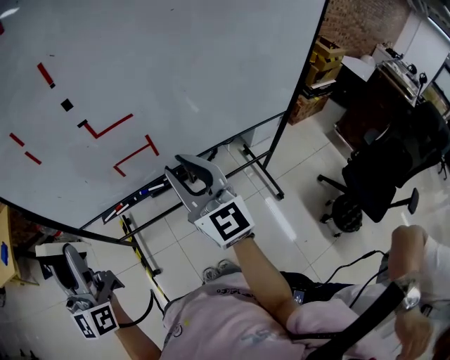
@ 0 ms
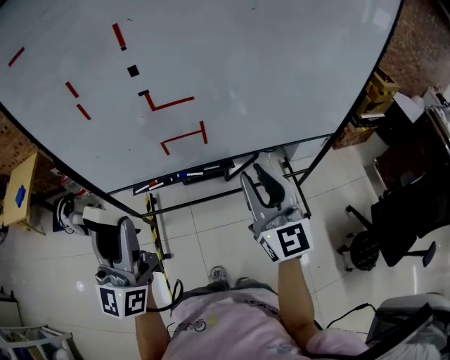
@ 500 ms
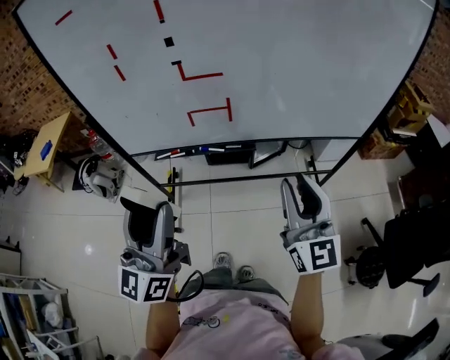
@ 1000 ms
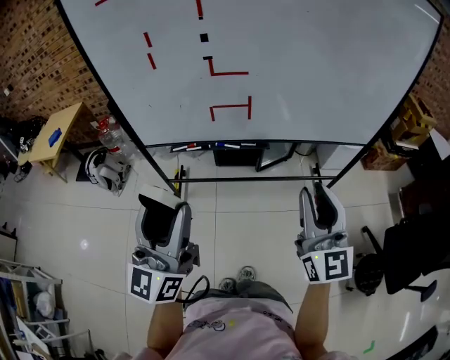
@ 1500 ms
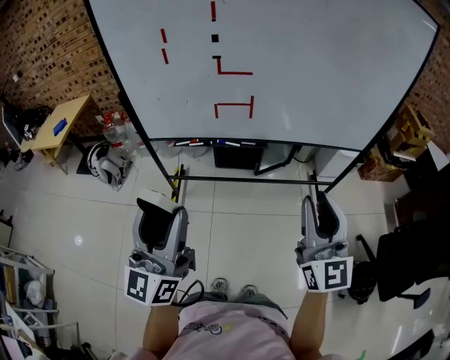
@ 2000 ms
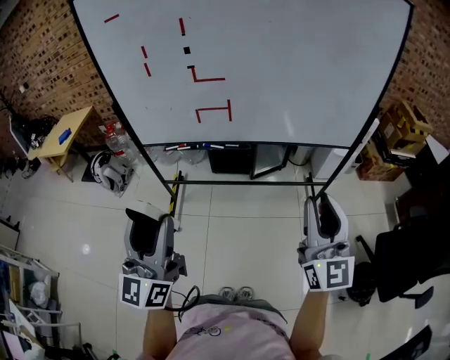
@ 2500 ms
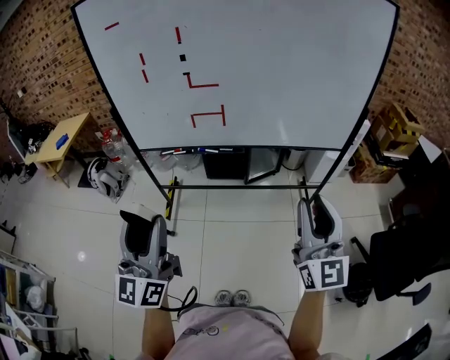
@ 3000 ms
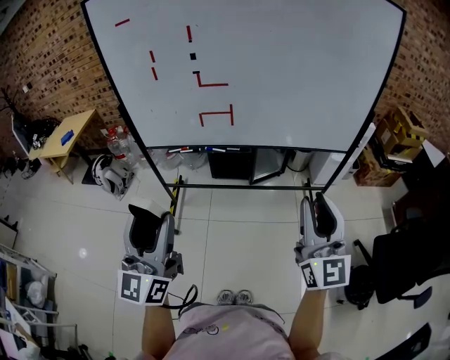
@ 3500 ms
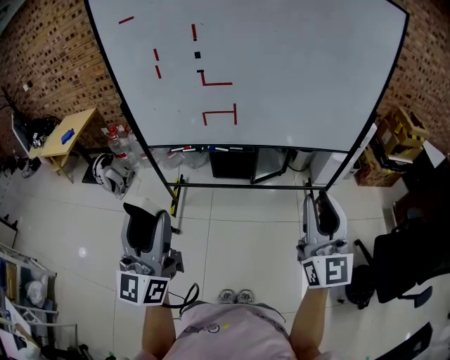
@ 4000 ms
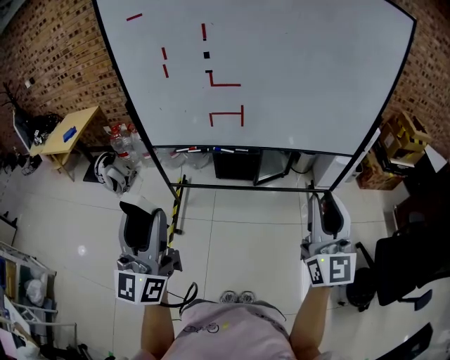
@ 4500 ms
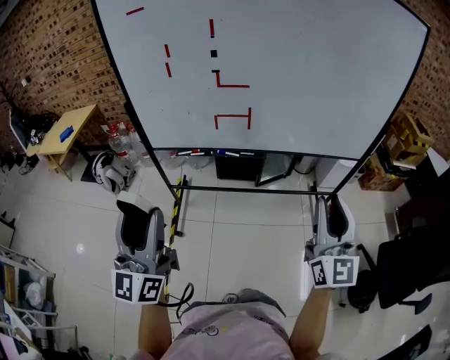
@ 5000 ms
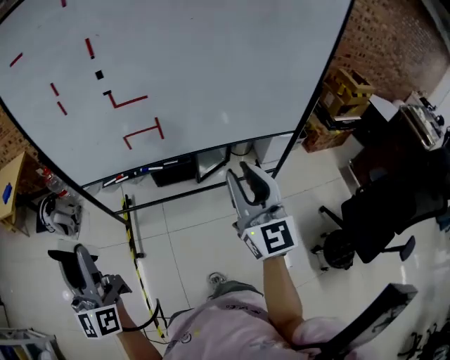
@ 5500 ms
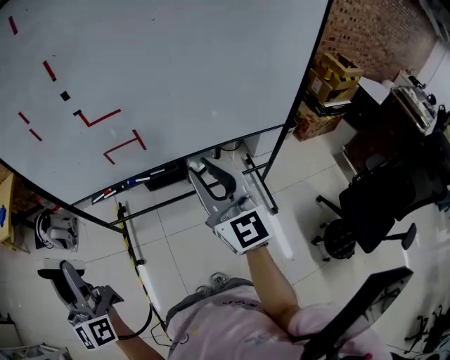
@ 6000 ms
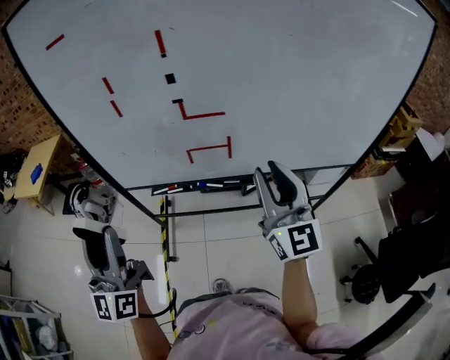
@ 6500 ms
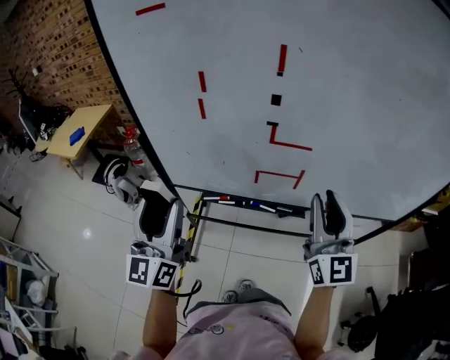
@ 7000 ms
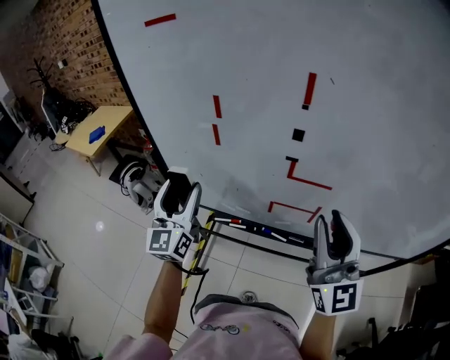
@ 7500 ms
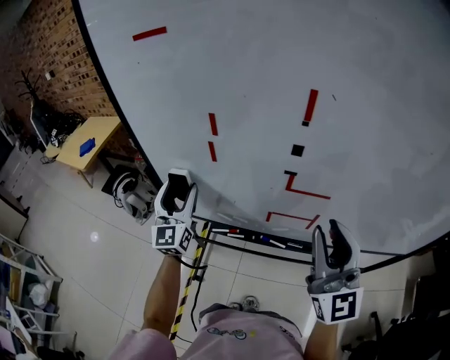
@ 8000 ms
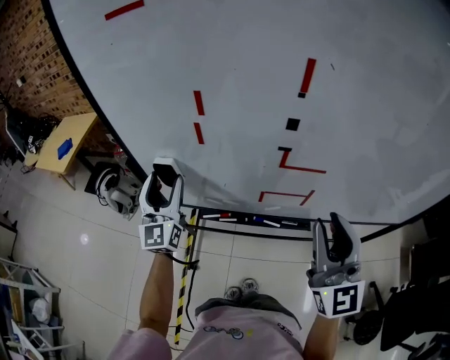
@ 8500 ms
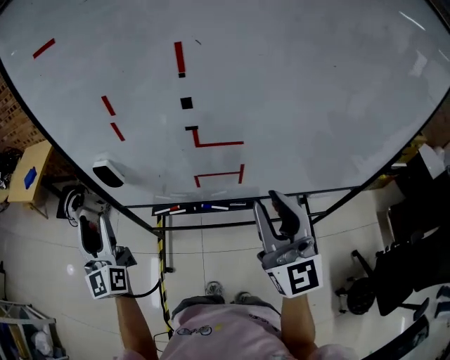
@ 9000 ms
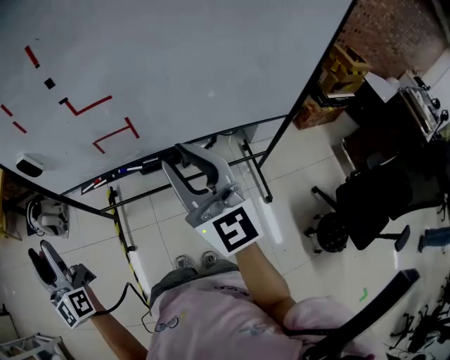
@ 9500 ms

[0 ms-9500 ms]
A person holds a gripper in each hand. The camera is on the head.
0 ms to 2000 ms: The two grippers go some 25 cm backward.
2000 ms to 4000 ms: The right gripper travels to the right and backward by approximately 10 cm. The left gripper shifts some 10 cm backward.
4000 ms to 5500 ms: The left gripper shifts roughly 15 cm forward and to the left. The right gripper shifts about 15 cm forward.
5500 ms to 7500 ms: The right gripper moves forward and to the left, approximately 30 cm. Meanwhile the left gripper shifts some 35 cm forward.
7500 ms to 9500 ms: The left gripper is displaced backward by roughly 25 cm. The right gripper heads backward and to the right, covering roughly 20 cm.

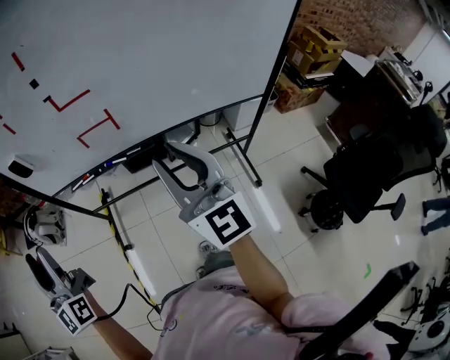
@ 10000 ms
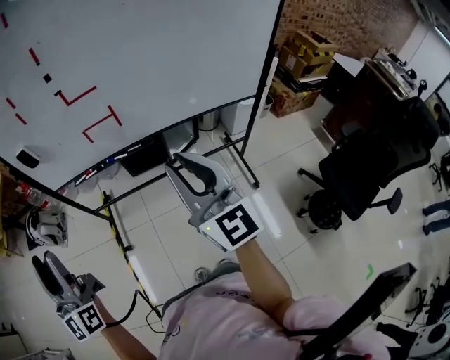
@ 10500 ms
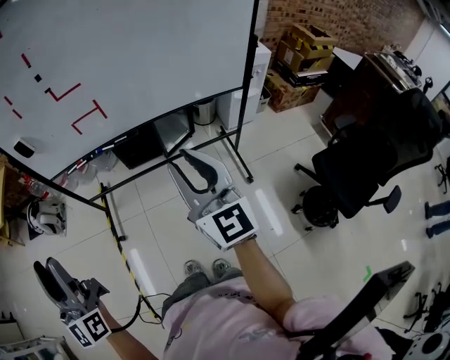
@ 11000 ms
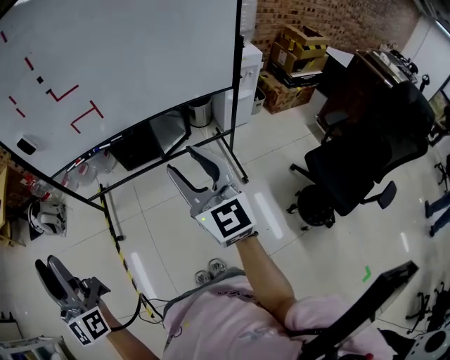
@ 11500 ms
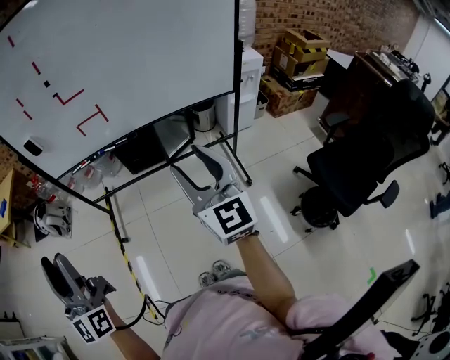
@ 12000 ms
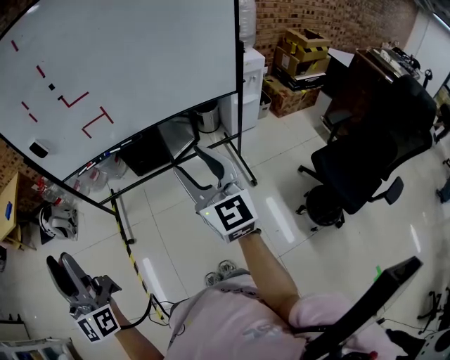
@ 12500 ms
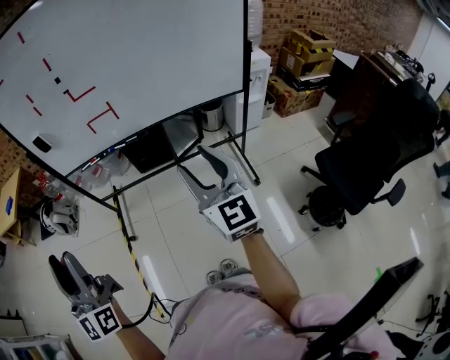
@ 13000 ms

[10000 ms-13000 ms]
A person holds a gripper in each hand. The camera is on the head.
10000 ms to 11500 ms: The left gripper moves backward, roughly 25 cm. Meanwhile the right gripper moves backward and to the right, some 25 cm, and opens up.
11500 ms to 13000 ms: The grippers make only small movements.

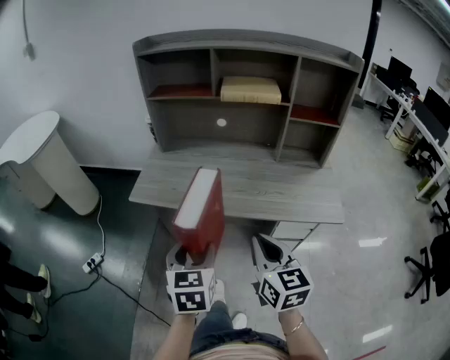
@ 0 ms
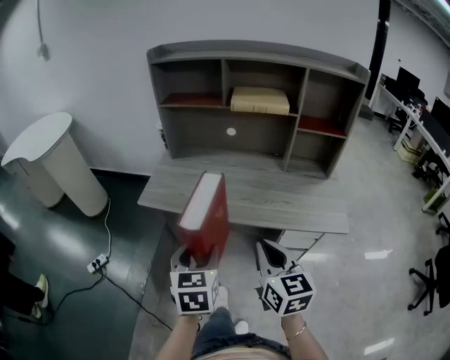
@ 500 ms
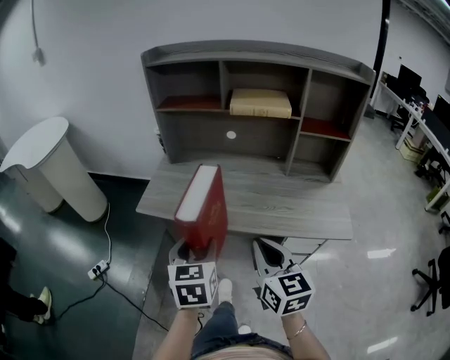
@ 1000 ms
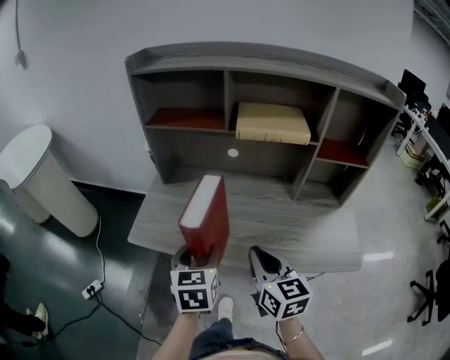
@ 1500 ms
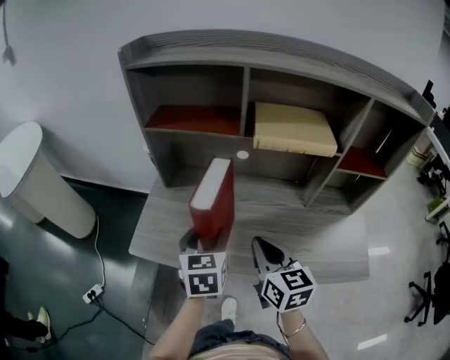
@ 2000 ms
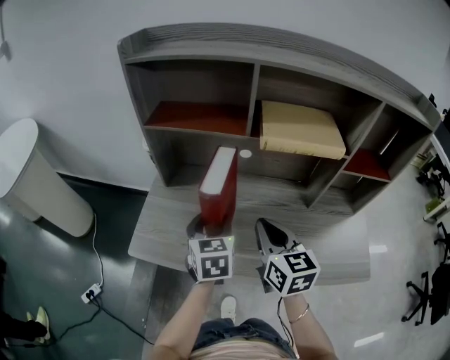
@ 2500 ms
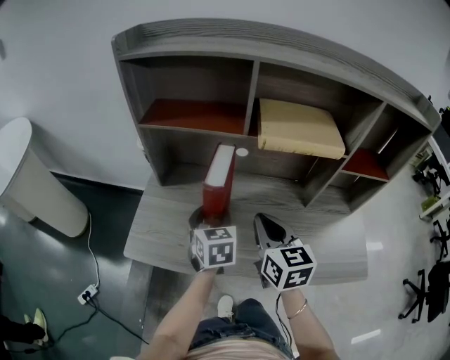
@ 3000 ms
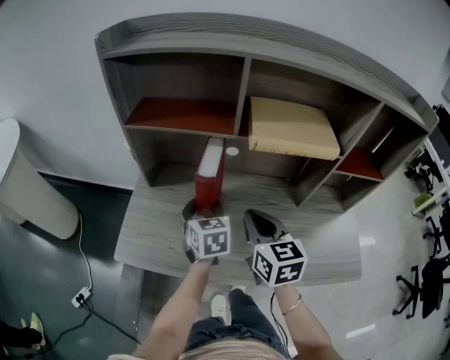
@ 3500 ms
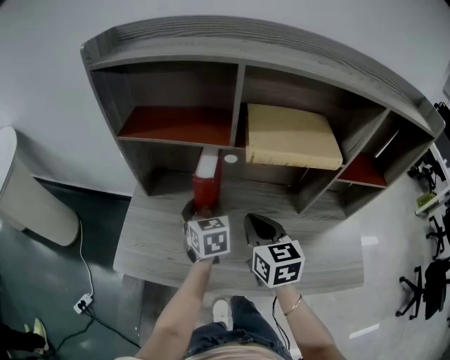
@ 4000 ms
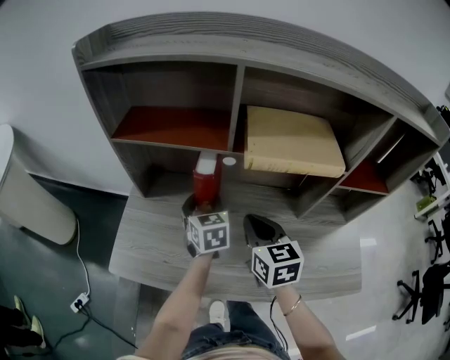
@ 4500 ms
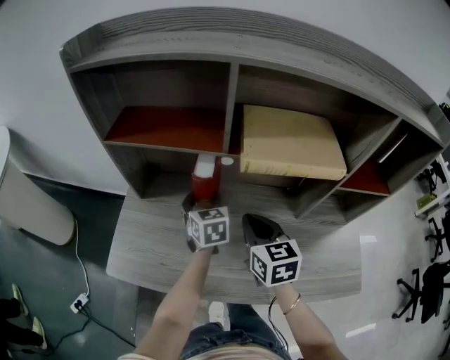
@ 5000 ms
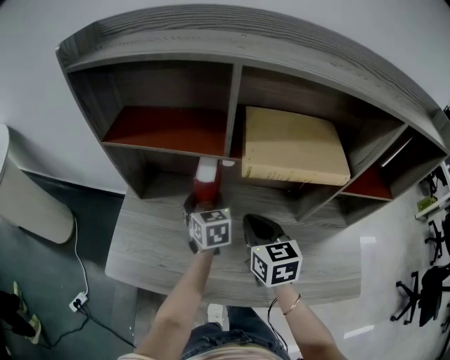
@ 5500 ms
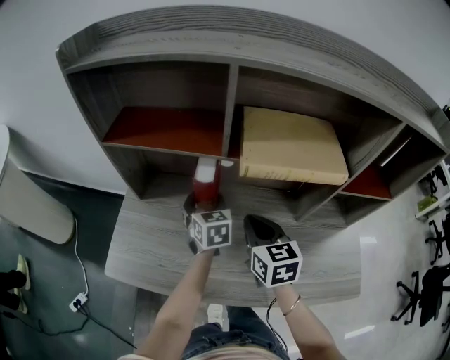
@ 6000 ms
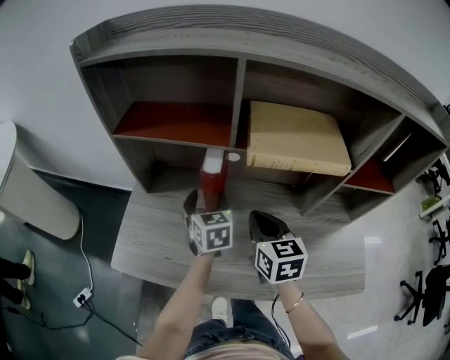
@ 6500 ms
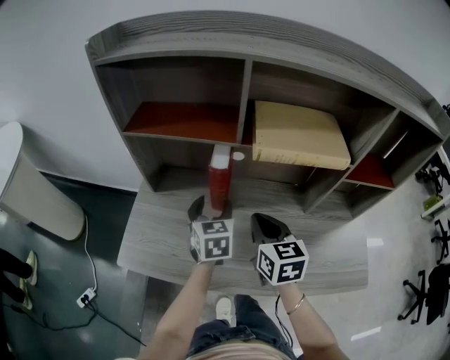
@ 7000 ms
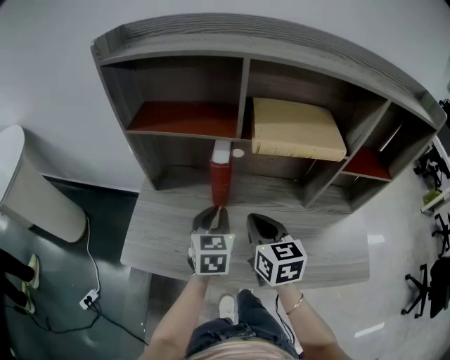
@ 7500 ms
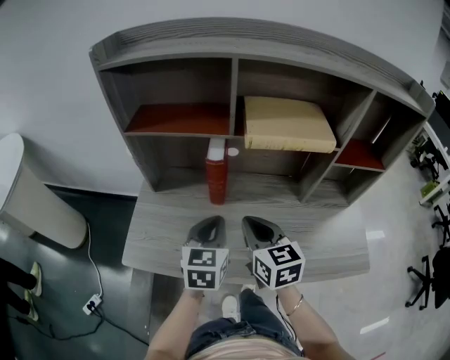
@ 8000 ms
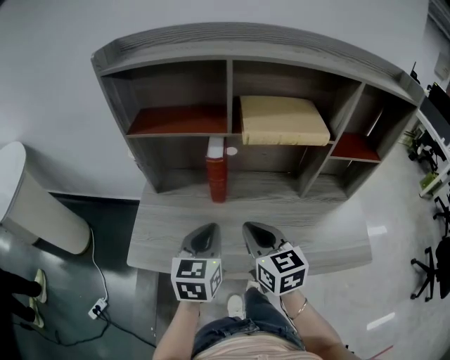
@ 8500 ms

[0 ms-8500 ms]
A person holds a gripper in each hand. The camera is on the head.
0 ms to 2000 ms: Both grippers travel together forward, approximately 30 cm.
2000 ms to 4000 ms: The two grippers go some 15 cm forward.
6500 ms to 8500 ms: The left gripper heads backward and upward, covering about 20 cm, turns by about 20 degrees, and closes its fingers, while the right gripper shifts roughly 10 cm backward and to the left.

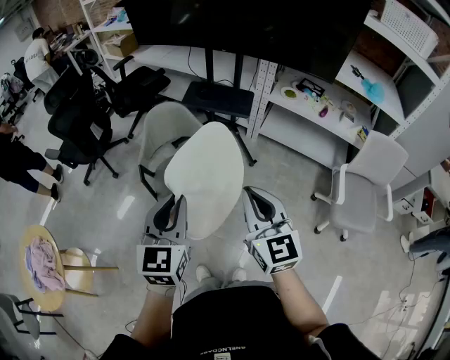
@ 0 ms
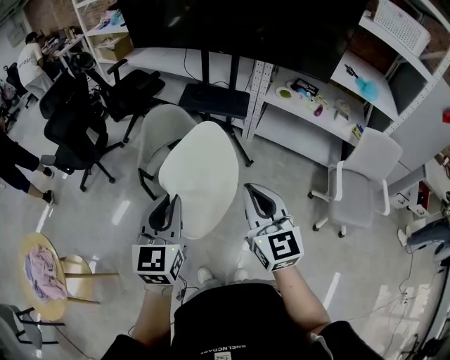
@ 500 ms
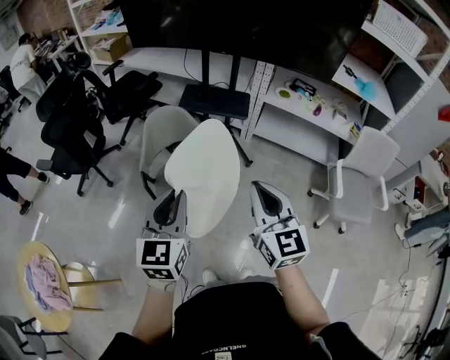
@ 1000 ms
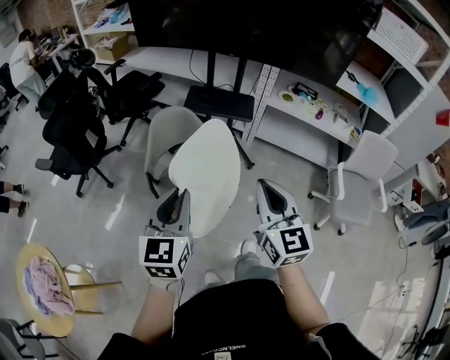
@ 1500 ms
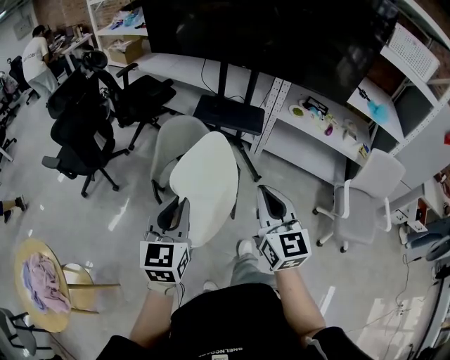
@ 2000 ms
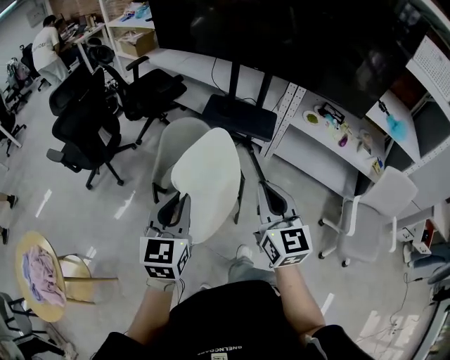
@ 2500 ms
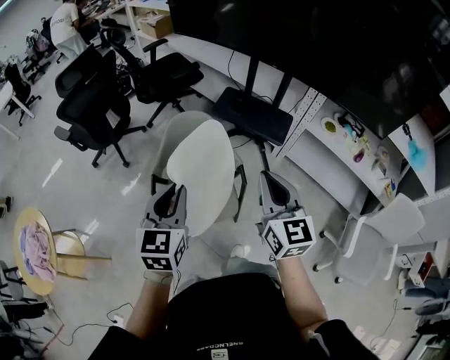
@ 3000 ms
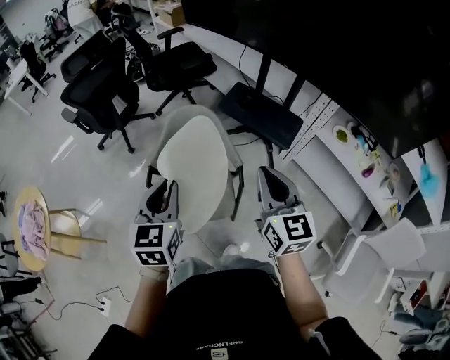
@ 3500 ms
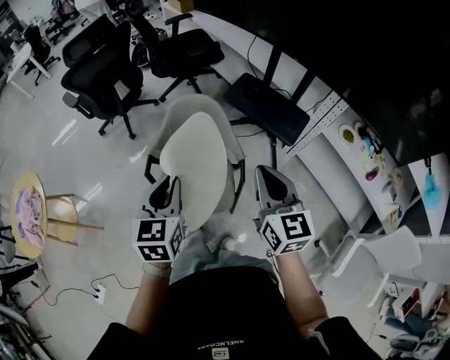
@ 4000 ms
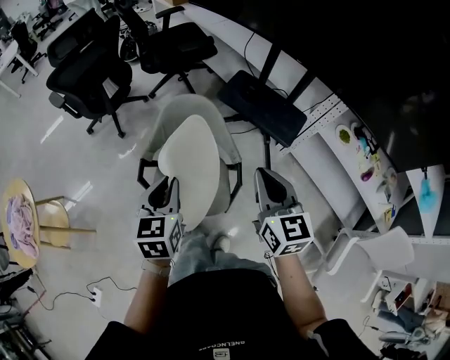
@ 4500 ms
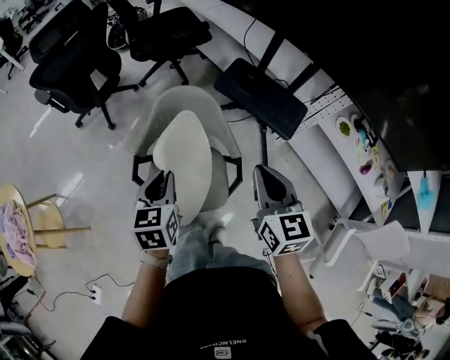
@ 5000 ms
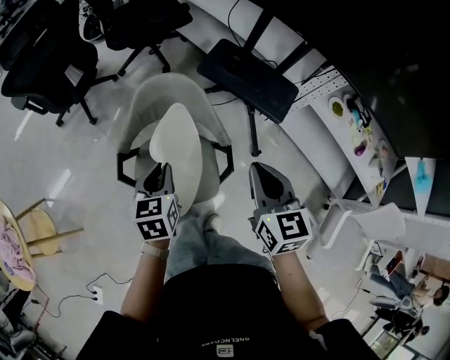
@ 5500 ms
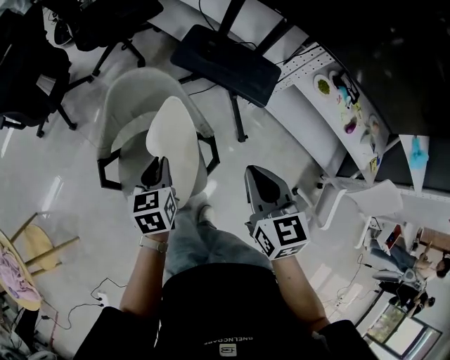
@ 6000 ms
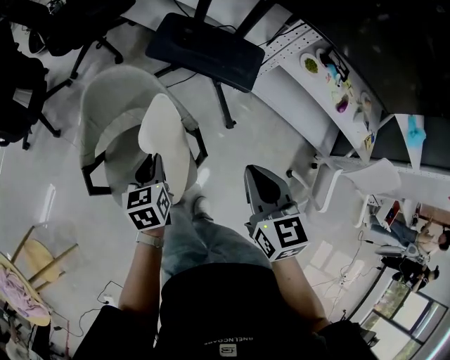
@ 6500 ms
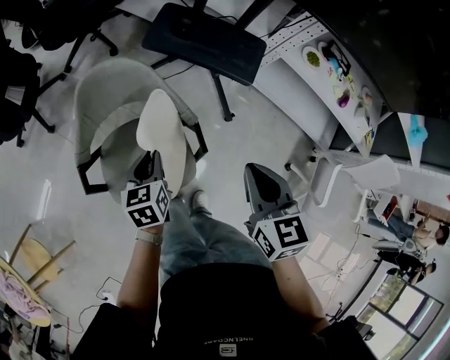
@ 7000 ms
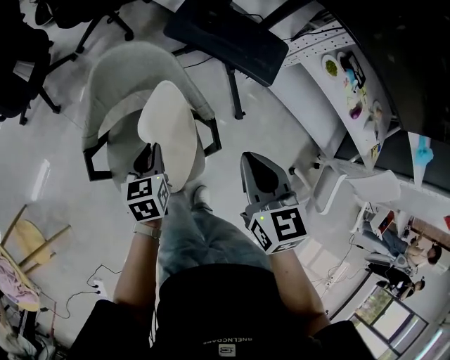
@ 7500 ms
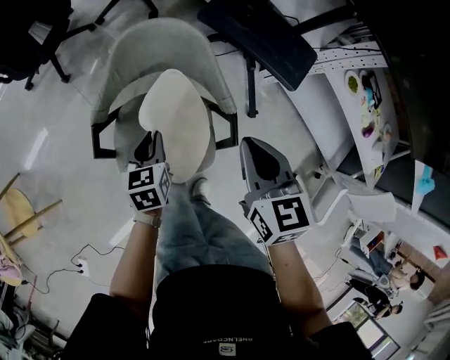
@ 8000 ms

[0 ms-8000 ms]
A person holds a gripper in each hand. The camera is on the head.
0 ms to 2000 ms: Both grippers move to the left and forward, approximately 10 cm.
2000 ms to 4000 ms: The left gripper moves some 20 cm, and rotates roughly 30 degrees. Meanwhile the right gripper moves roughly 25 cm, and changes its angle by roughly 30 degrees.
4000 ms to 6000 ms: The right gripper shifts some 10 cm downward, and swivels roughly 20 degrees; the left gripper goes roughly 25 cm downward and forward, and changes its angle by about 20 degrees.
6000 ms to 8000 ms: The right gripper moves to the left, downward and forward, approximately 10 cm, while the left gripper moves downward and to the left, approximately 15 cm.
